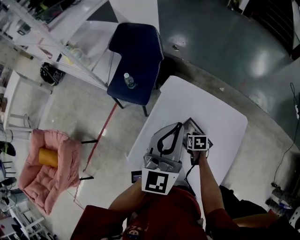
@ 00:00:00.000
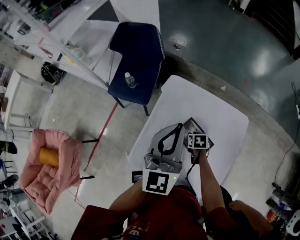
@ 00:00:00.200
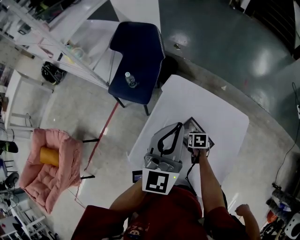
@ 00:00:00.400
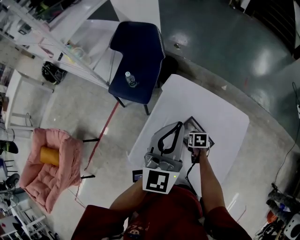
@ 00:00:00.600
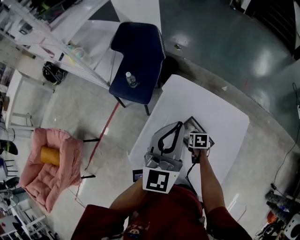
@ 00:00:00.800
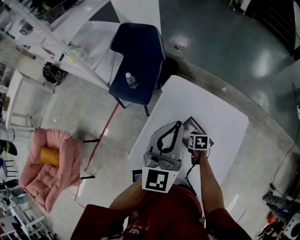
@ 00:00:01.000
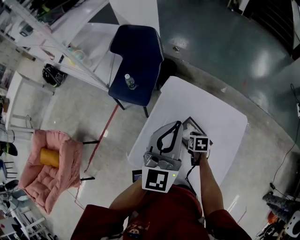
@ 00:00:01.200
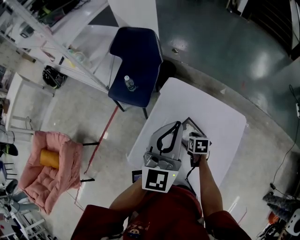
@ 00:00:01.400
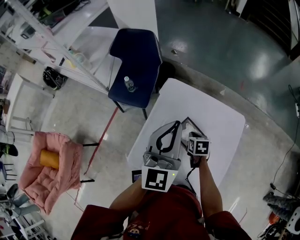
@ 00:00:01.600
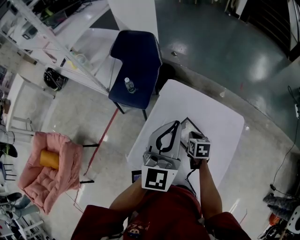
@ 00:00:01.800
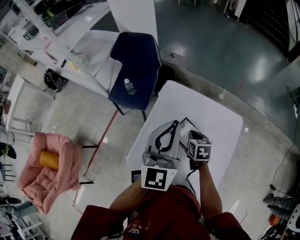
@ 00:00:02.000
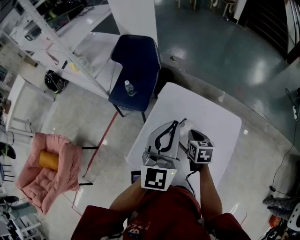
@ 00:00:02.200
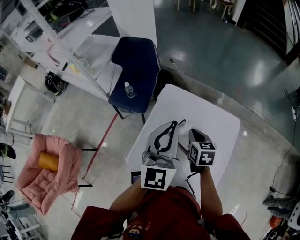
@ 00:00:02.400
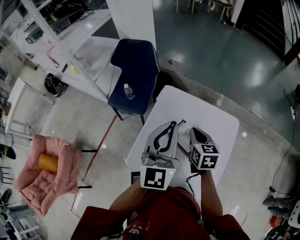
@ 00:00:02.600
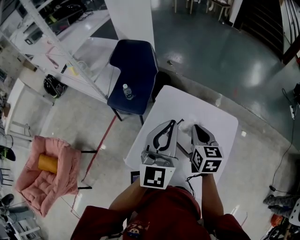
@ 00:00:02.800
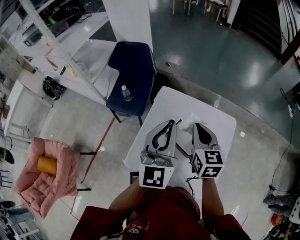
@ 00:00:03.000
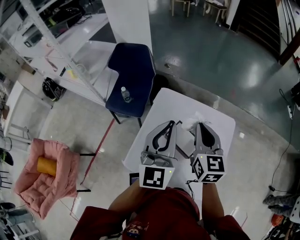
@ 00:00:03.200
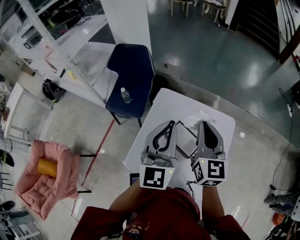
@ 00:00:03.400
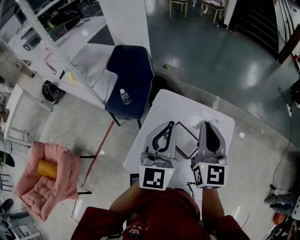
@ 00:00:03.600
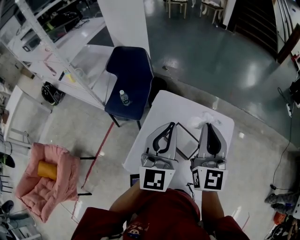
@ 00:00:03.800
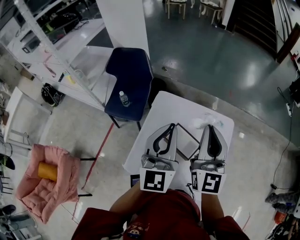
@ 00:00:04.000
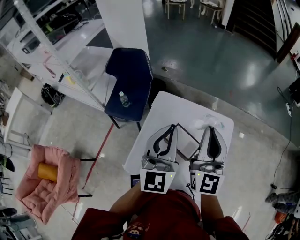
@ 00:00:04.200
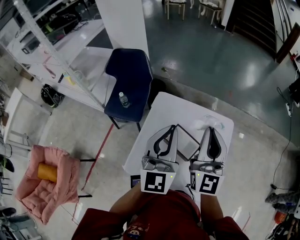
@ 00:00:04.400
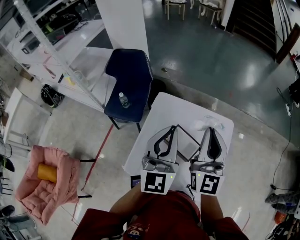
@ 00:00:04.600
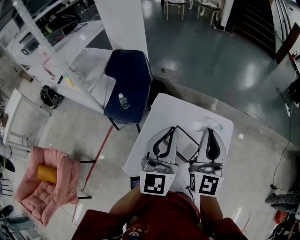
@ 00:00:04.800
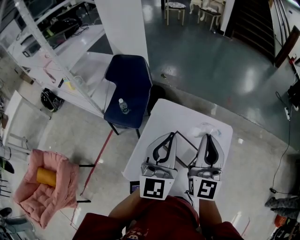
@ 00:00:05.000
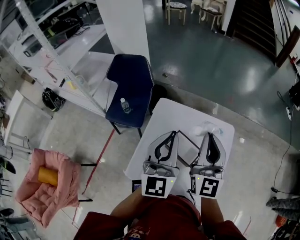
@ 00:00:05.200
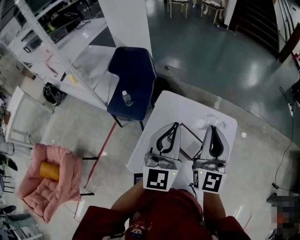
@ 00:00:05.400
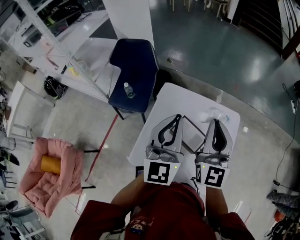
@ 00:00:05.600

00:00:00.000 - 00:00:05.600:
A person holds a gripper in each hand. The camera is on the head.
00:00:00.000 - 00:00:01.400: The right gripper closes its fingers.
00:00:01.400 - 00:00:02.800: The right gripper is displaced upward by about 25 cm, and tips its fingers upward by some 30 degrees. The left gripper moves roughly 5 cm.
00:00:02.800 - 00:00:04.200: The right gripper heads upward, covering some 15 cm, and points its fingers about 40 degrees further upward.
00:00:04.200 - 00:00:05.600: The grippers move only a little.

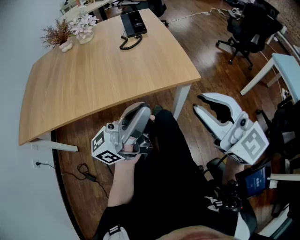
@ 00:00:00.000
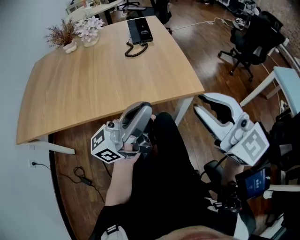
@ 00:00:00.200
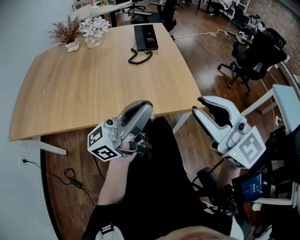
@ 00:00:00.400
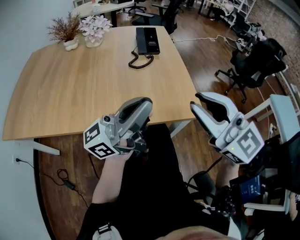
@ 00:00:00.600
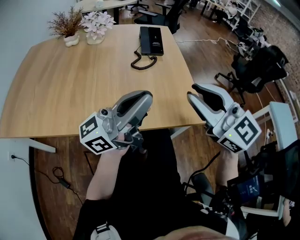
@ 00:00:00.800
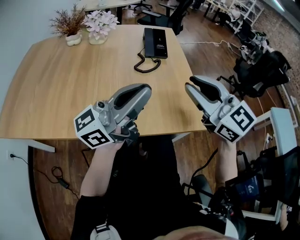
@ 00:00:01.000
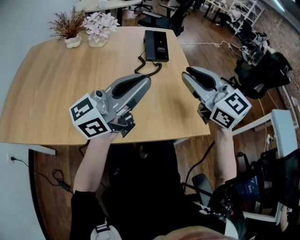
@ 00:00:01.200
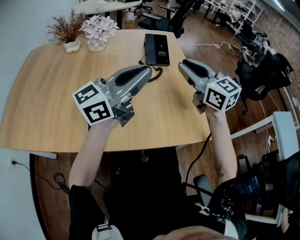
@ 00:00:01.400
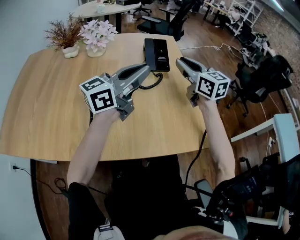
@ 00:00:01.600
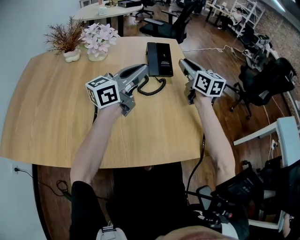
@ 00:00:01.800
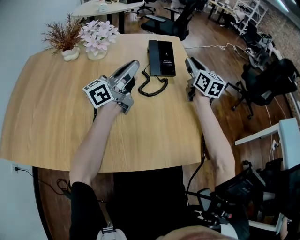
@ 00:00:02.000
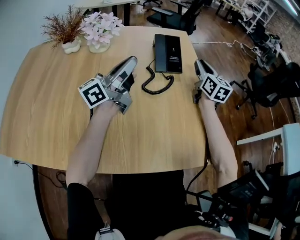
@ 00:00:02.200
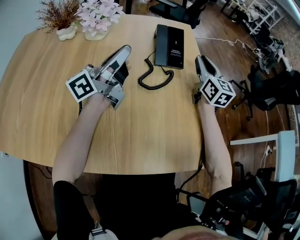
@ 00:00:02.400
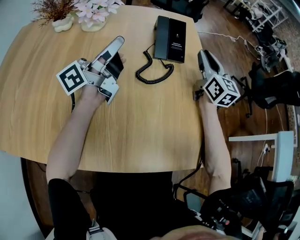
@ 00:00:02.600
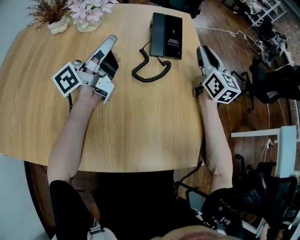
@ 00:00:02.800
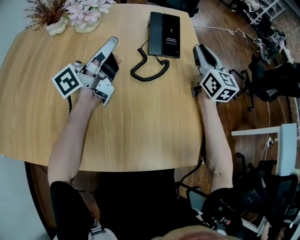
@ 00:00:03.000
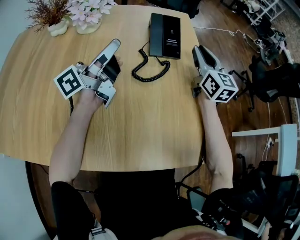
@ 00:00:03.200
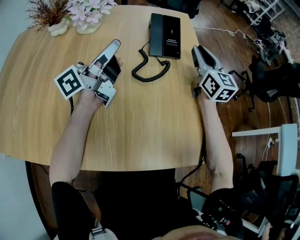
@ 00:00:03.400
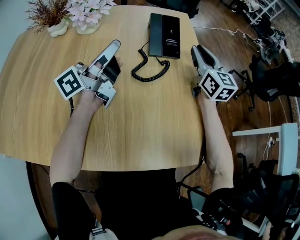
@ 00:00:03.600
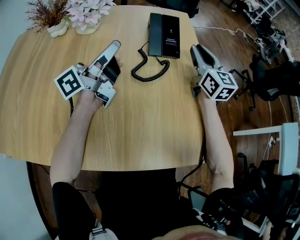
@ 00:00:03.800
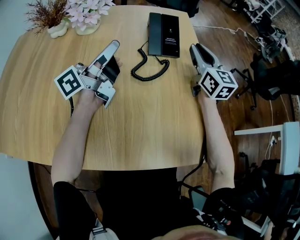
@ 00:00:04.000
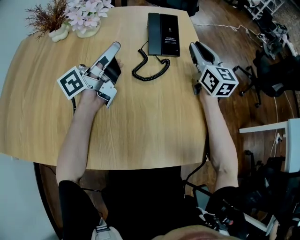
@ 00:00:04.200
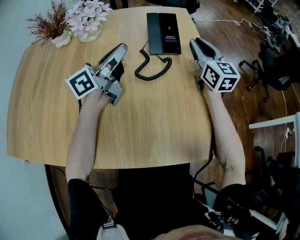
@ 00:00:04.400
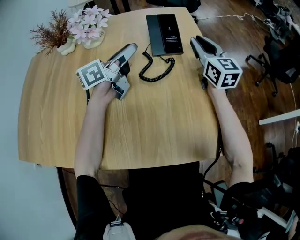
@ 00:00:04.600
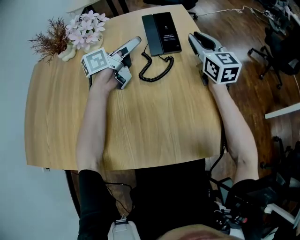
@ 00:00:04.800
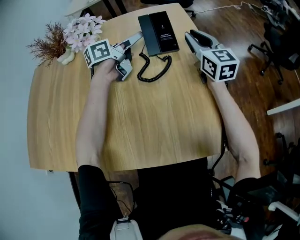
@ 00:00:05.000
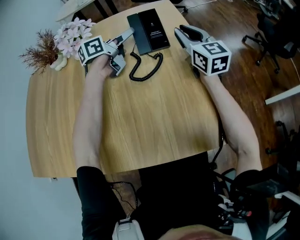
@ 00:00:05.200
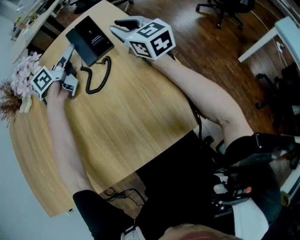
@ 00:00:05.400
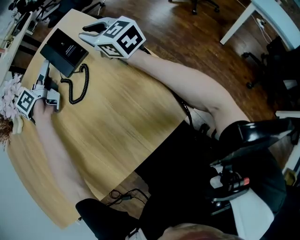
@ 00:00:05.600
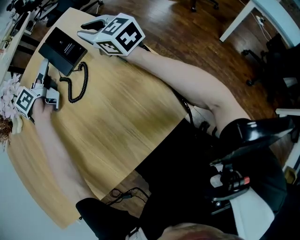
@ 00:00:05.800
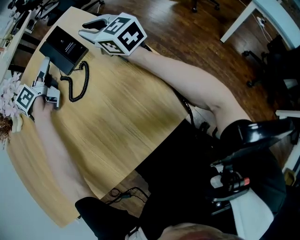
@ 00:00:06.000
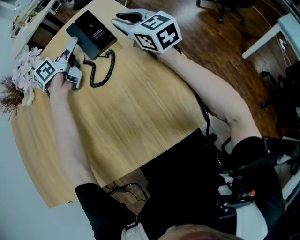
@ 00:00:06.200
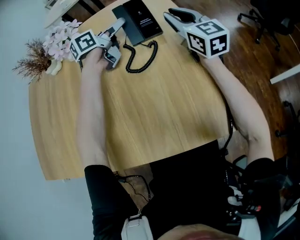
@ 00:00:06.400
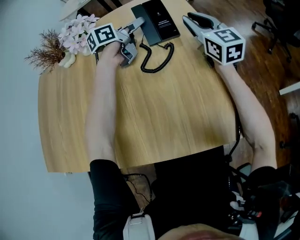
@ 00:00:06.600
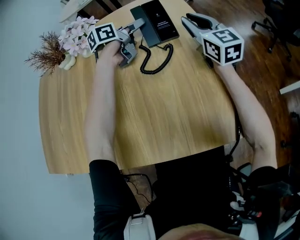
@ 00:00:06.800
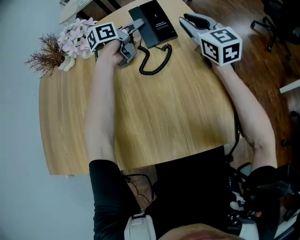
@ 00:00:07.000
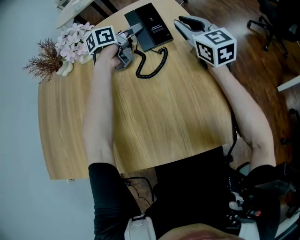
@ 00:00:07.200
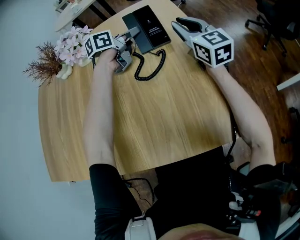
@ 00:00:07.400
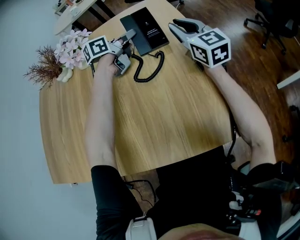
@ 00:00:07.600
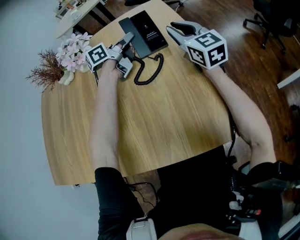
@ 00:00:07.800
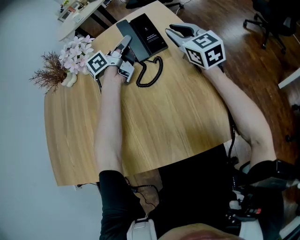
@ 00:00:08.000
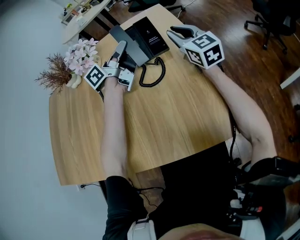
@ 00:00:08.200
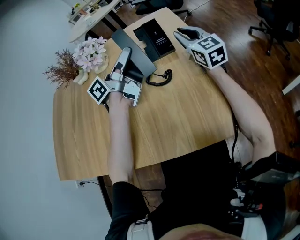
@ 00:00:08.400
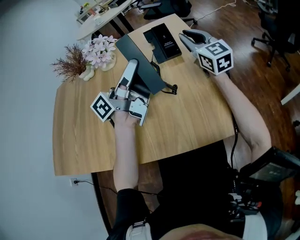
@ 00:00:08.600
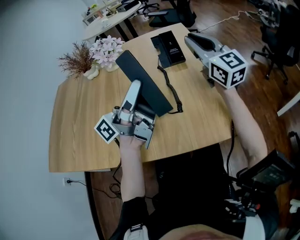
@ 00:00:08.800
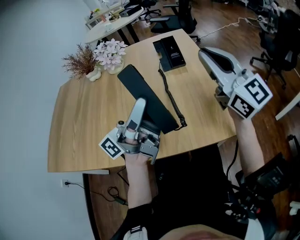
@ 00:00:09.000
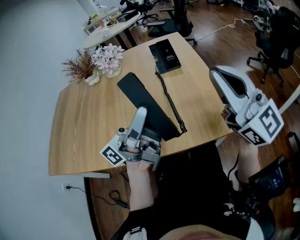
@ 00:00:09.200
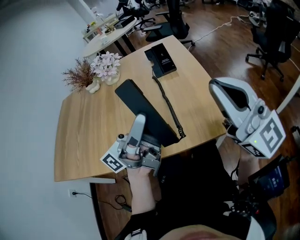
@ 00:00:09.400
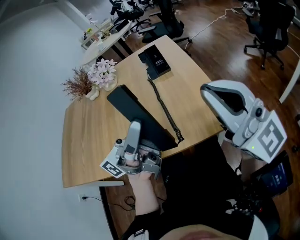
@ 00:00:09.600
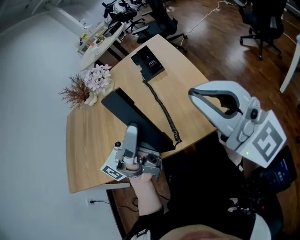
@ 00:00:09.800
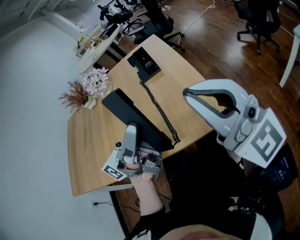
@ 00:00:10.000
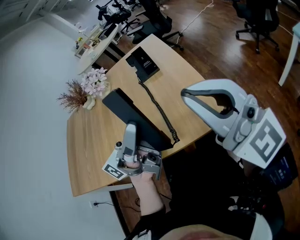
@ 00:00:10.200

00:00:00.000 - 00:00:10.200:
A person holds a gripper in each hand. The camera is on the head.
00:00:00.000 - 00:00:01.400: The two grippers go roughly 30 cm forward. The left gripper rotates some 20 degrees.
00:00:01.400 - 00:00:03.000: The left gripper moves forward, to the left and downward, roughly 20 cm, and turns by roughly 40 degrees. Meanwhile the right gripper heads forward and downward, covering some 20 cm, and turns by some 20 degrees.
00:00:03.000 - 00:00:04.400: The grippers move only a little.
00:00:04.400 - 00:00:05.800: The left gripper moves forward, approximately 15 cm, rotates approximately 20 degrees, and opens.
00:00:05.800 - 00:00:07.200: The grippers move only a little.
00:00:07.200 - 00:00:08.800: The left gripper travels backward and upward by about 35 cm, angles its fingers upward, by approximately 60 degrees, and closes its fingers. Meanwhile the right gripper is displaced upward and backward by roughly 15 cm.
00:00:08.800 - 00:00:10.200: The right gripper travels backward by approximately 30 cm; the left gripper travels to the right and backward by approximately 15 cm.

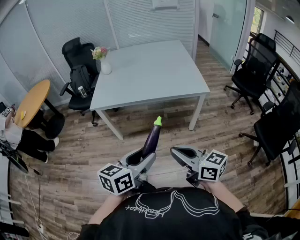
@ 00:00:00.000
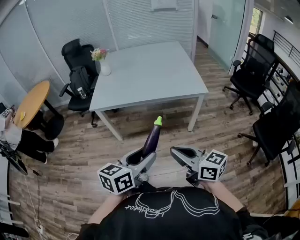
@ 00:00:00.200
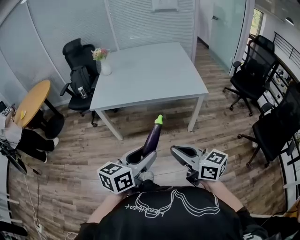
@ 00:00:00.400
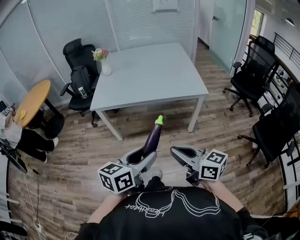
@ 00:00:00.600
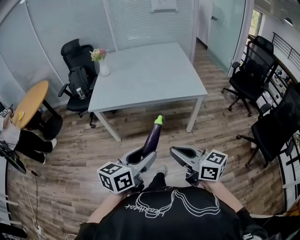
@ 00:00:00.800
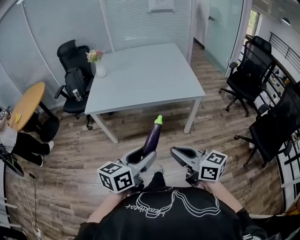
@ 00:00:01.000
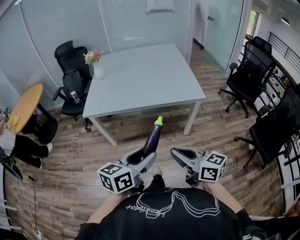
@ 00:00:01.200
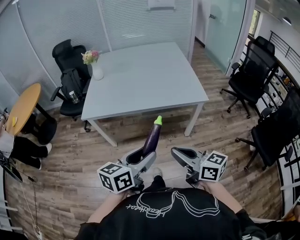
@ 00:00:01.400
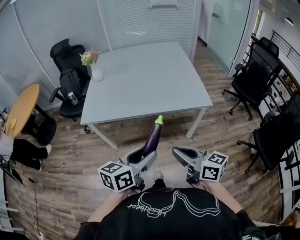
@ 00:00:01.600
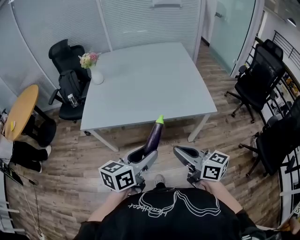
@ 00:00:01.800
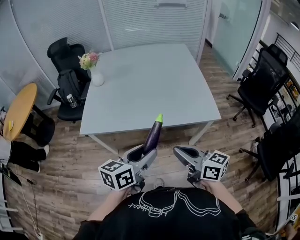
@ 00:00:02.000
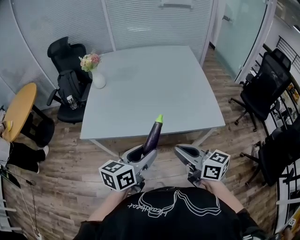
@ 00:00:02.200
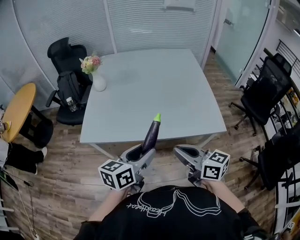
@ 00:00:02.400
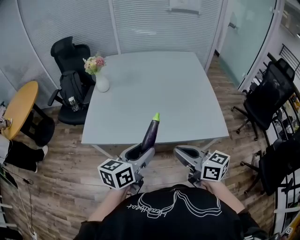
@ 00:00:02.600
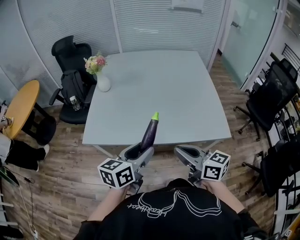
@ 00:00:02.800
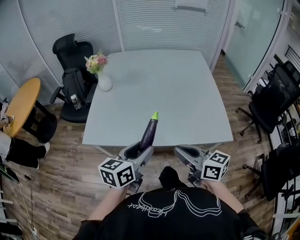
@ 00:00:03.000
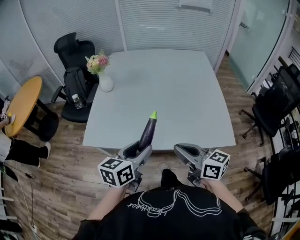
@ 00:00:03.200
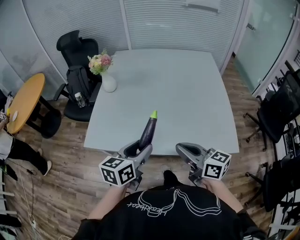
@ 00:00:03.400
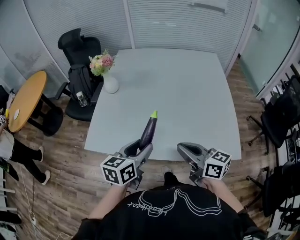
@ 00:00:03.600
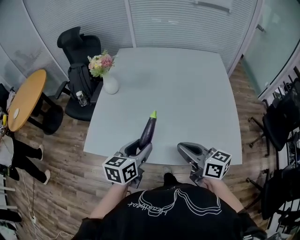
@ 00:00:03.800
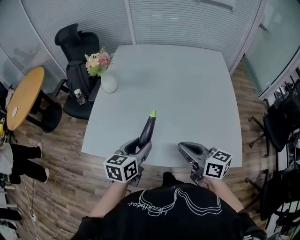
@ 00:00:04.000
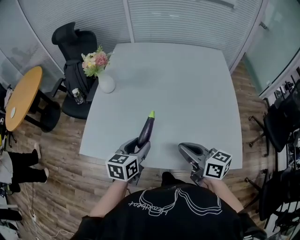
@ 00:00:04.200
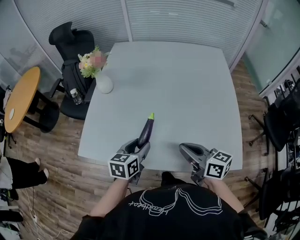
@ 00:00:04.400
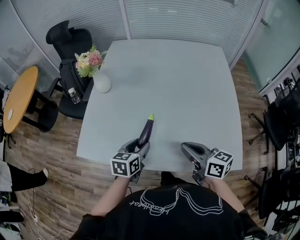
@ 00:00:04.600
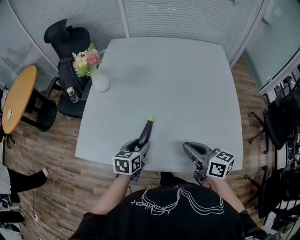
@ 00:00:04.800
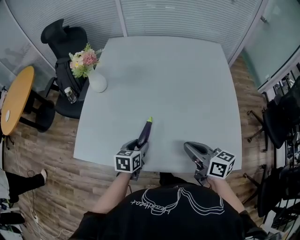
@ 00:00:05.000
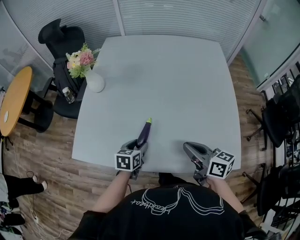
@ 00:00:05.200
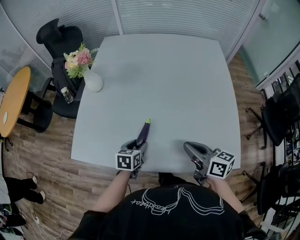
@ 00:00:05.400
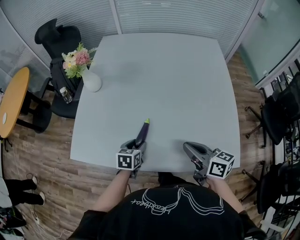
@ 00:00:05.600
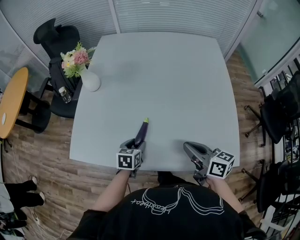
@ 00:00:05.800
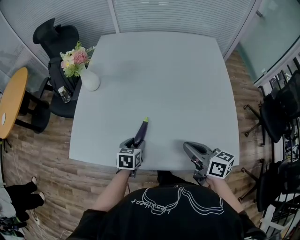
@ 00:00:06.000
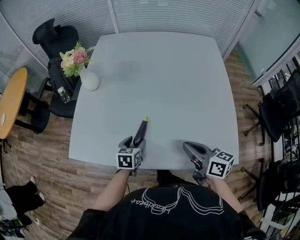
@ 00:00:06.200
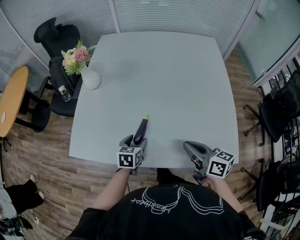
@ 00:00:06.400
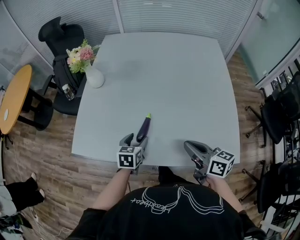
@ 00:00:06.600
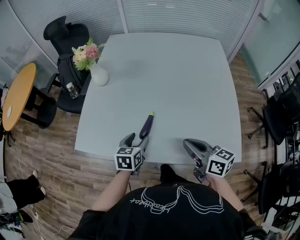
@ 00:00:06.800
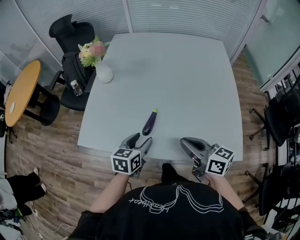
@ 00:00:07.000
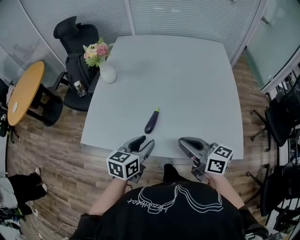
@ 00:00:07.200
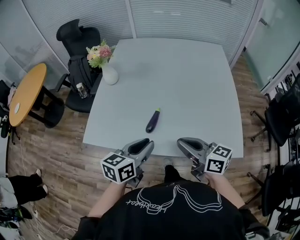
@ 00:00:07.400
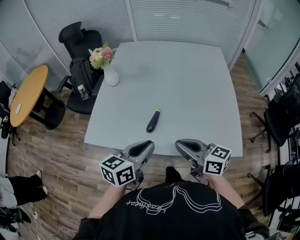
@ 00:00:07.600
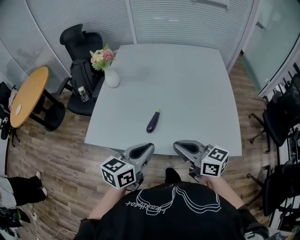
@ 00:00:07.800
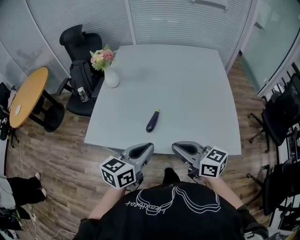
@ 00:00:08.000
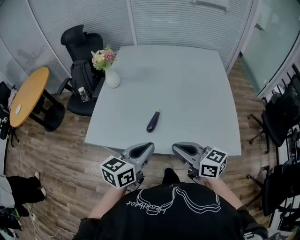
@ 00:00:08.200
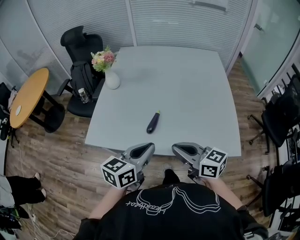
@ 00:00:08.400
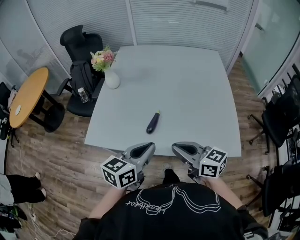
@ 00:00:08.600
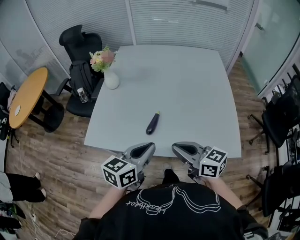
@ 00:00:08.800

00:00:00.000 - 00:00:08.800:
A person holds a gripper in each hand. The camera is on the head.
00:00:00.000 - 00:00:01.400: Both grippers travel together forward, approximately 10 cm.
00:00:01.400 - 00:00:03.000: The grippers both shift forward by approximately 35 cm.
00:00:03.000 - 00:00:04.400: The left gripper heads forward and downward, covering approximately 25 cm. Meanwhile the right gripper goes roughly 20 cm forward.
00:00:04.400 - 00:00:05.800: The left gripper travels downward by about 15 cm; the right gripper heads to the right, covering about 5 cm.
00:00:05.800 - 00:00:07.400: The right gripper goes roughly 15 cm to the left, backward and upward; the left gripper travels upward and backward by some 25 cm, changes its angle by about 30 degrees, and closes up.
